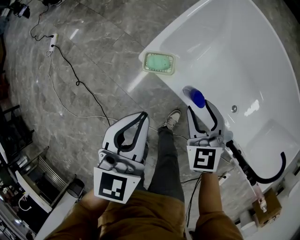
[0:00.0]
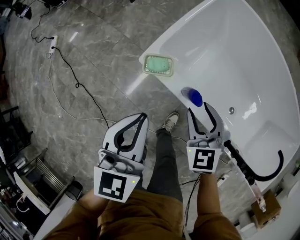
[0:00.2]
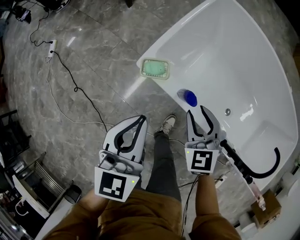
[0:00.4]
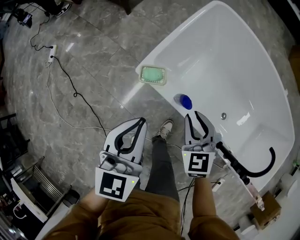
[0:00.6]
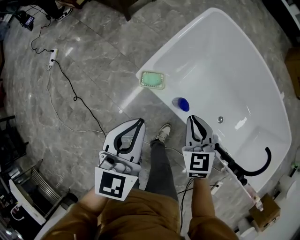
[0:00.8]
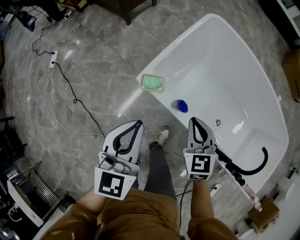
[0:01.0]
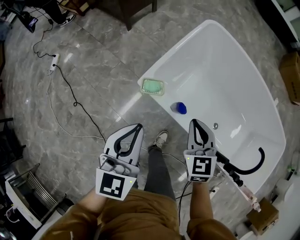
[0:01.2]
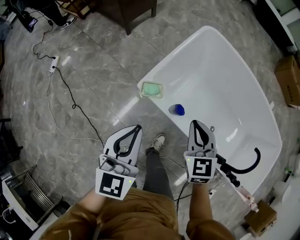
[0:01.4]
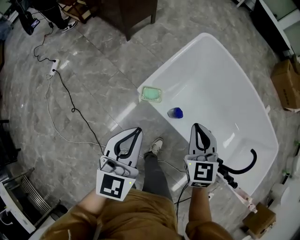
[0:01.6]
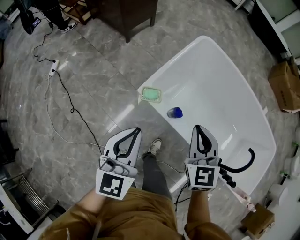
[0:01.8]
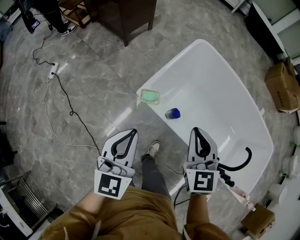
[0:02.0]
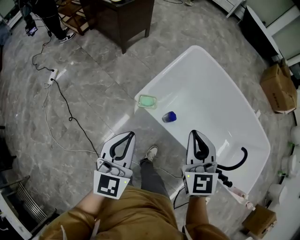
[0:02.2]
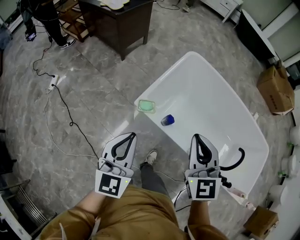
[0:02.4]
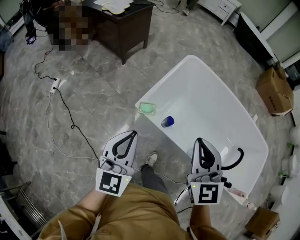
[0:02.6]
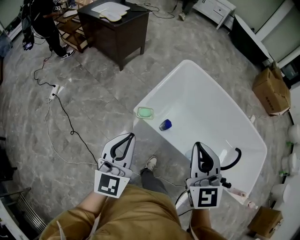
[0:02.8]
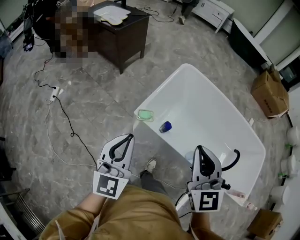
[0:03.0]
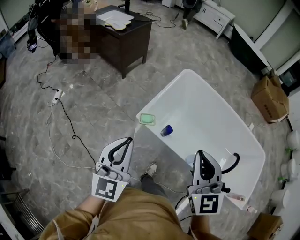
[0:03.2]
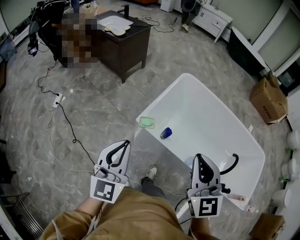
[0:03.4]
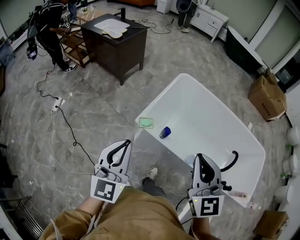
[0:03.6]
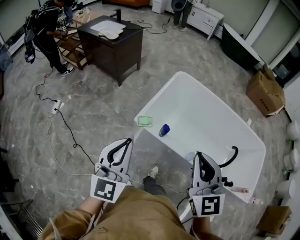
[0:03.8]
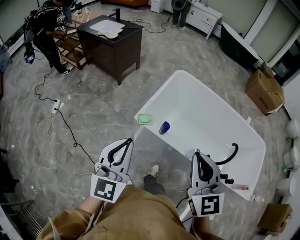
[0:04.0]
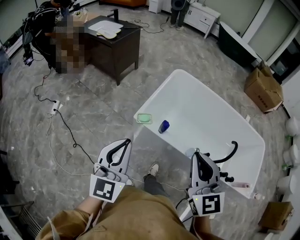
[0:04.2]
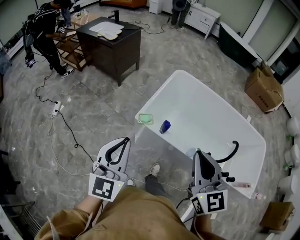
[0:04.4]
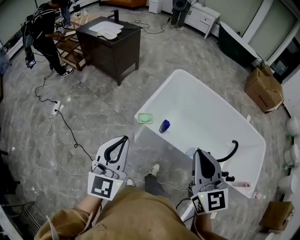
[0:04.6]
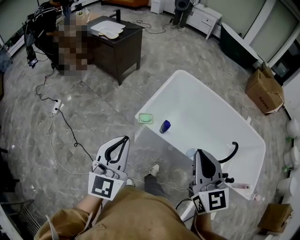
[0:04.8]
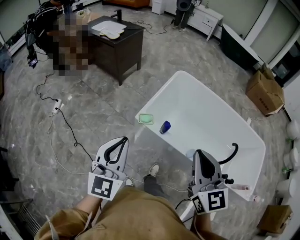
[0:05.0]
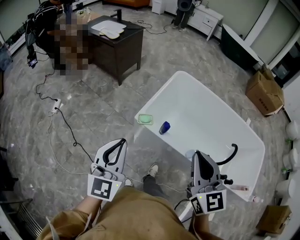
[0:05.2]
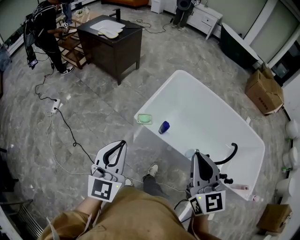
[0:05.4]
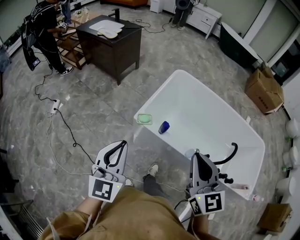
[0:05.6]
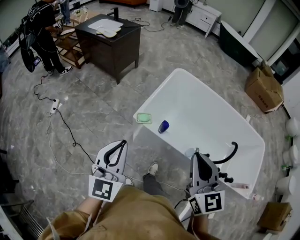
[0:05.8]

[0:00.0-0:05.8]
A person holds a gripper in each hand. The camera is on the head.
0:00.0 to 0:01.4: Both grippers travel together upward, approximately 15 cm. The right gripper closes.
0:01.4 to 0:02.8: The right gripper travels upward and backward by roughly 25 cm, while the left gripper travels upward and backward by about 15 cm.
0:02.8 to 0:04.4: The right gripper shifts approximately 10 cm backward, while the left gripper is displaced backward and upward by about 10 cm.
0:04.4 to 0:05.8: There are only small adjustments of the grippers.

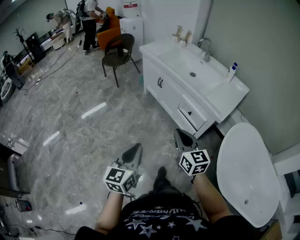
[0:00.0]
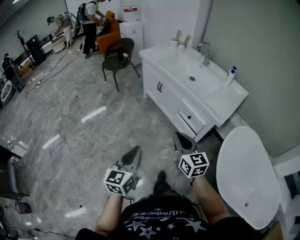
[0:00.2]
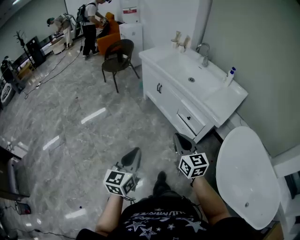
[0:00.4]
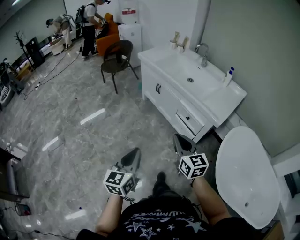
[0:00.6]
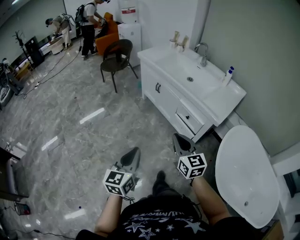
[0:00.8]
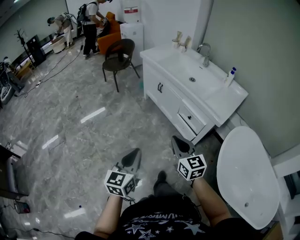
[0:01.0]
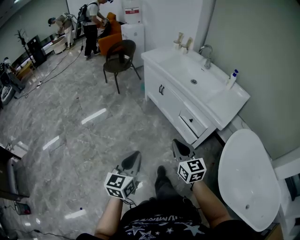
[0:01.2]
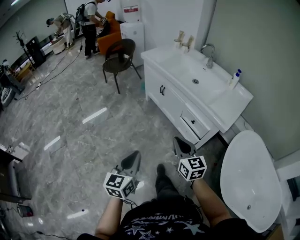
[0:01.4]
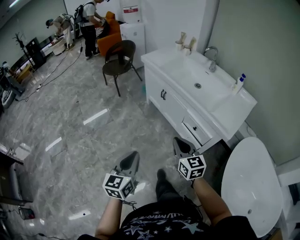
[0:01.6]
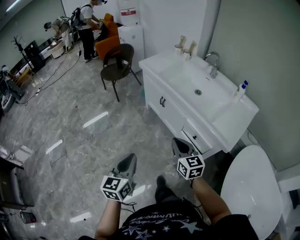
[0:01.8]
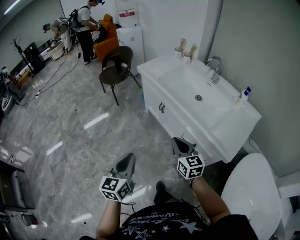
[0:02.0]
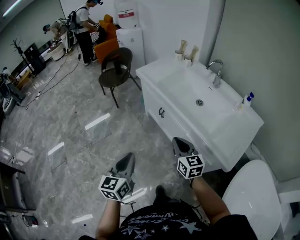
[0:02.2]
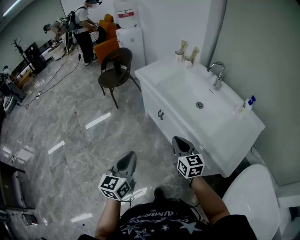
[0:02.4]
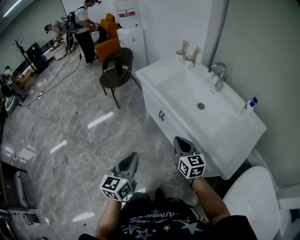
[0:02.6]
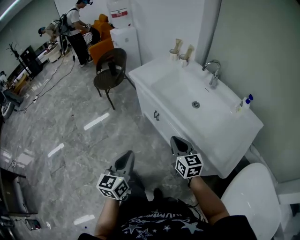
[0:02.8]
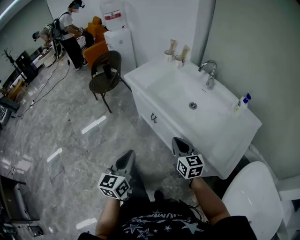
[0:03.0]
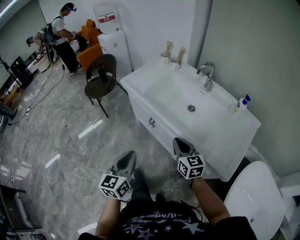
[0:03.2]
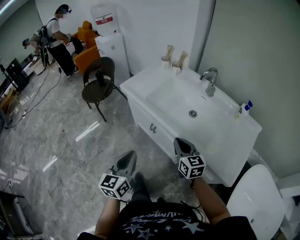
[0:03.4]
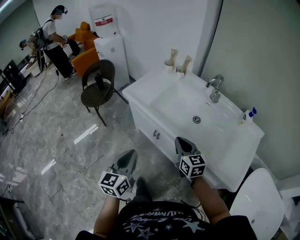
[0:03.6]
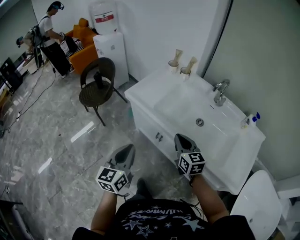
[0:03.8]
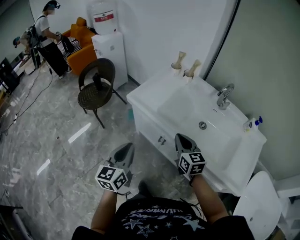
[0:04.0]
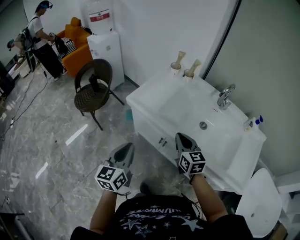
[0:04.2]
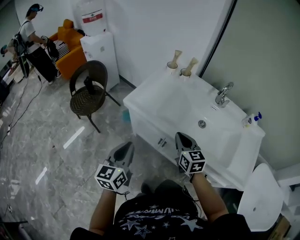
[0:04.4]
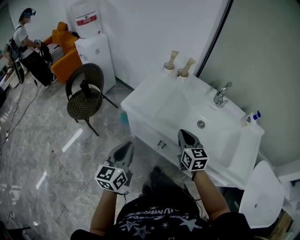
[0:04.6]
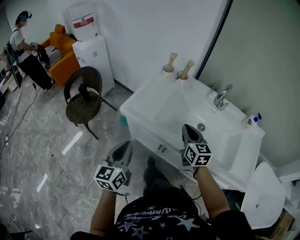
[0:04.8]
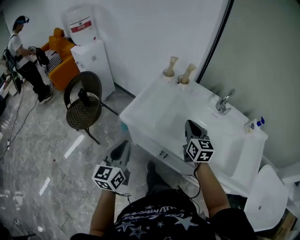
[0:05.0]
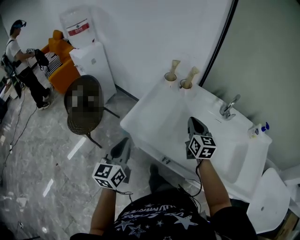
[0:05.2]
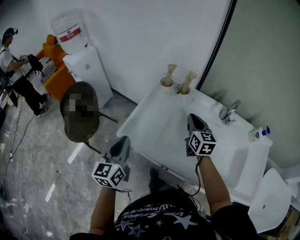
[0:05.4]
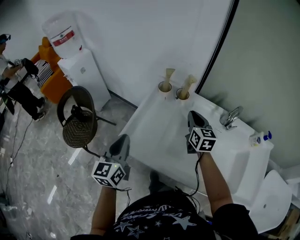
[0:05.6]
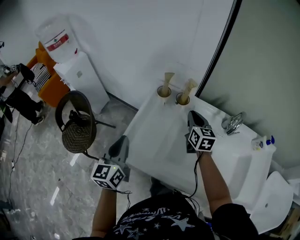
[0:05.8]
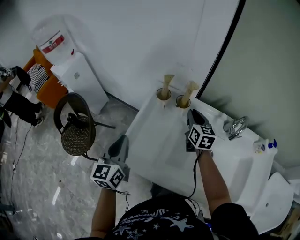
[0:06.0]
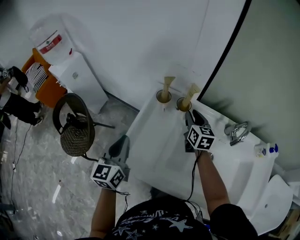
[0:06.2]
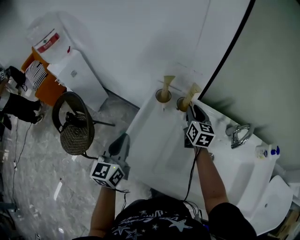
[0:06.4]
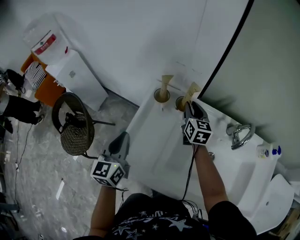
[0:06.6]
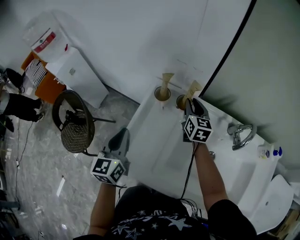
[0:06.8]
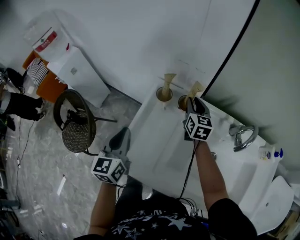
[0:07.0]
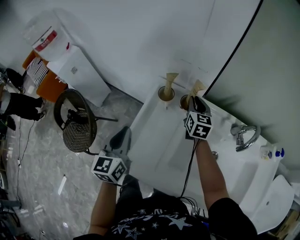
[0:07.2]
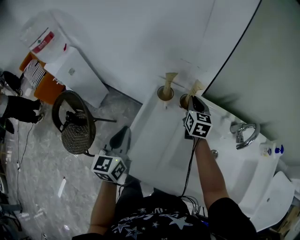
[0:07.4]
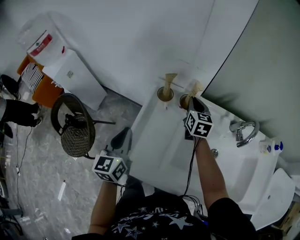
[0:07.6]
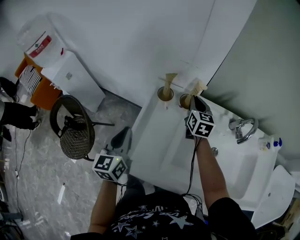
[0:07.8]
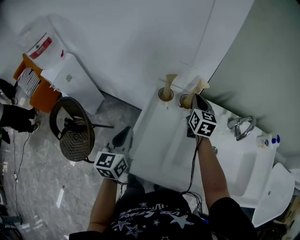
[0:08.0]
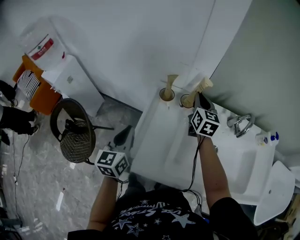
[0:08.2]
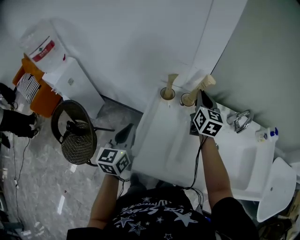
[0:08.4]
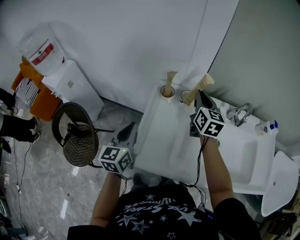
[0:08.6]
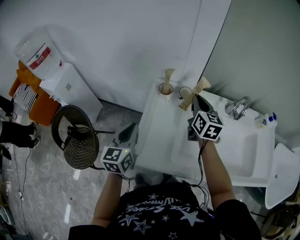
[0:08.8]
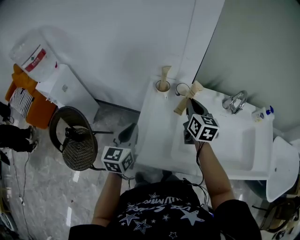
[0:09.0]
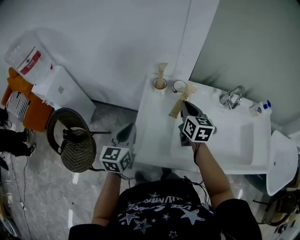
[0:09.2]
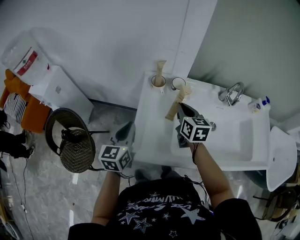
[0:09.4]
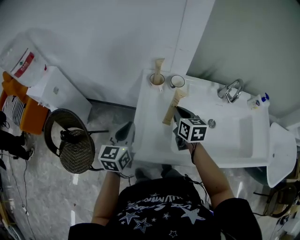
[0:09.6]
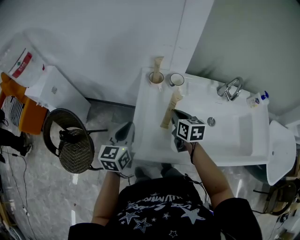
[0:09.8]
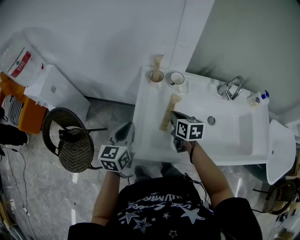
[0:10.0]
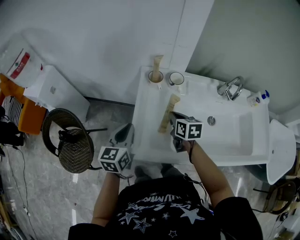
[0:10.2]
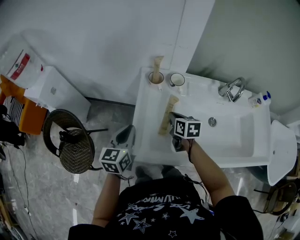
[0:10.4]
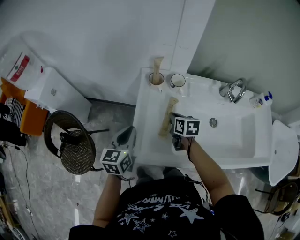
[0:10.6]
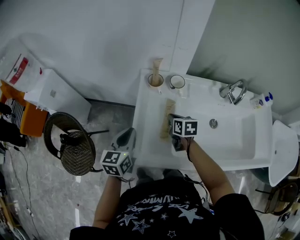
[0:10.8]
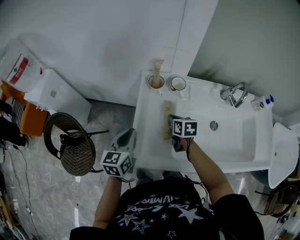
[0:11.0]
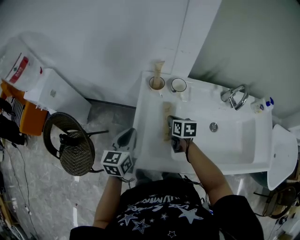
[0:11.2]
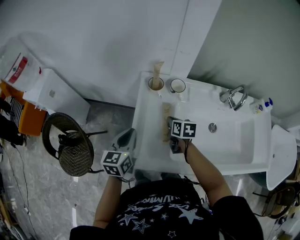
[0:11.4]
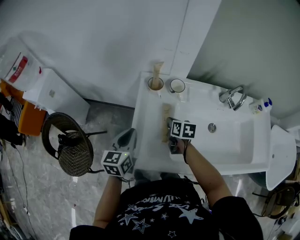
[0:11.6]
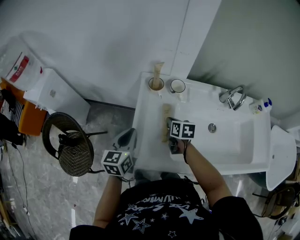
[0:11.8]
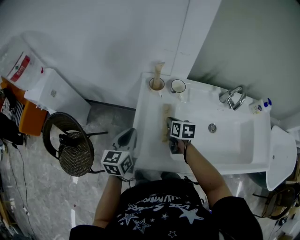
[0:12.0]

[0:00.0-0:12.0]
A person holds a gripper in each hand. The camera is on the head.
0:00.0 to 0:01.6: The two grippers go some 10 cm forward.
0:01.6 to 0:03.0: Both grippers move forward, about 30 cm.
0:03.0 to 0:04.4: Both grippers move forward and to the left, approximately 30 cm.
0:04.4 to 0:06.0: The grippers both shift forward by some 40 cm. The right gripper swivels some 20 degrees.
0:06.0 to 0:07.6: The two grippers go about 10 cm forward.
0:07.6 to 0:09.0: The right gripper is displaced backward and upward by roughly 15 cm.
0:09.0 to 0:10.4: The right gripper is displaced downward by some 15 cm, and changes its angle by approximately 30 degrees.
0:10.4 to 0:12.0: The grippers stay close to where they were, moving slightly.

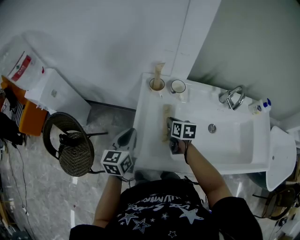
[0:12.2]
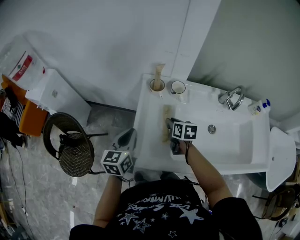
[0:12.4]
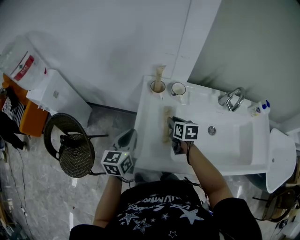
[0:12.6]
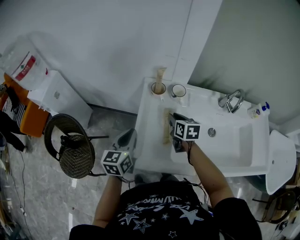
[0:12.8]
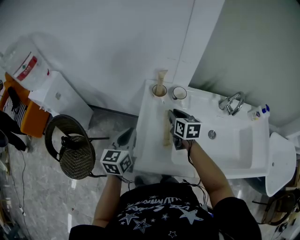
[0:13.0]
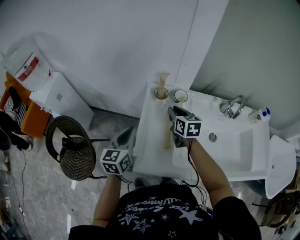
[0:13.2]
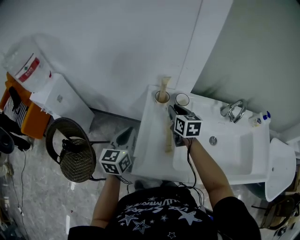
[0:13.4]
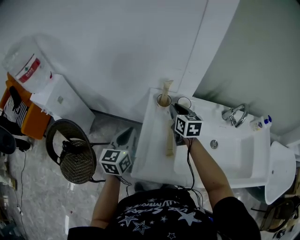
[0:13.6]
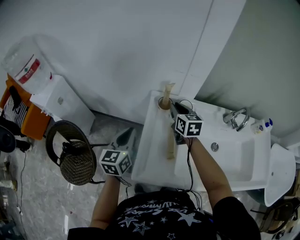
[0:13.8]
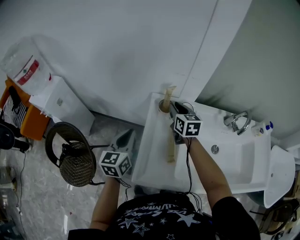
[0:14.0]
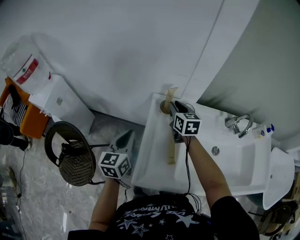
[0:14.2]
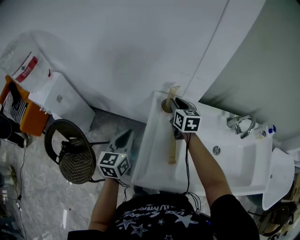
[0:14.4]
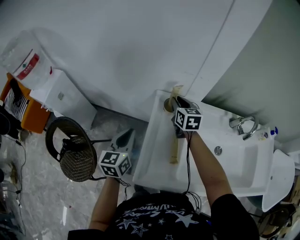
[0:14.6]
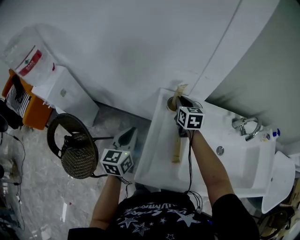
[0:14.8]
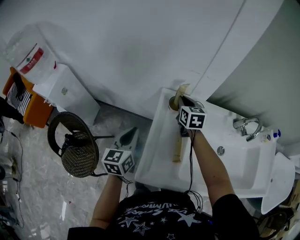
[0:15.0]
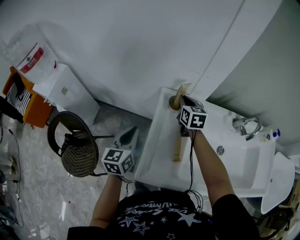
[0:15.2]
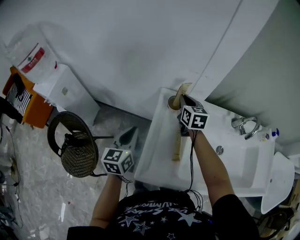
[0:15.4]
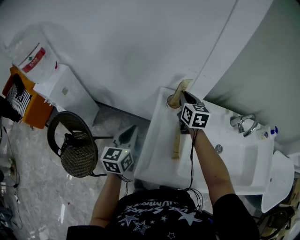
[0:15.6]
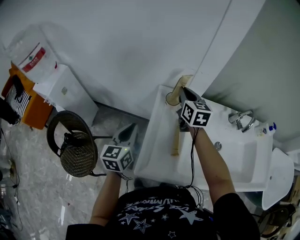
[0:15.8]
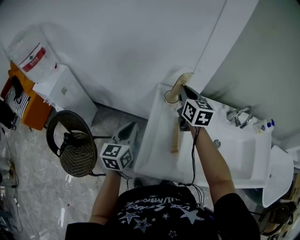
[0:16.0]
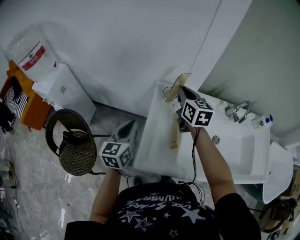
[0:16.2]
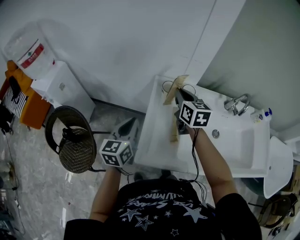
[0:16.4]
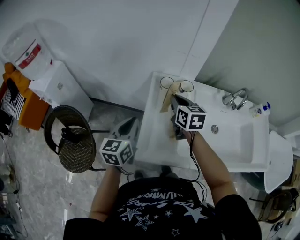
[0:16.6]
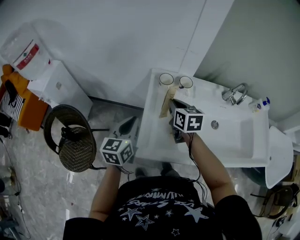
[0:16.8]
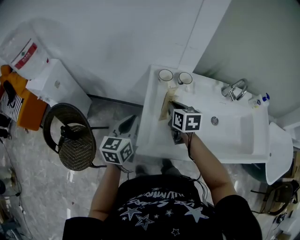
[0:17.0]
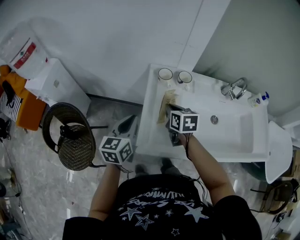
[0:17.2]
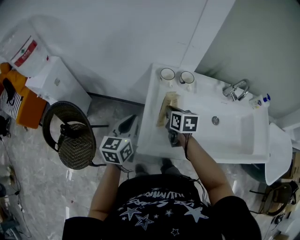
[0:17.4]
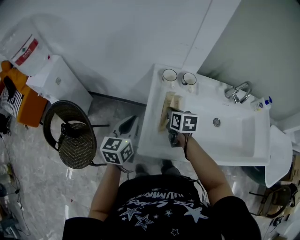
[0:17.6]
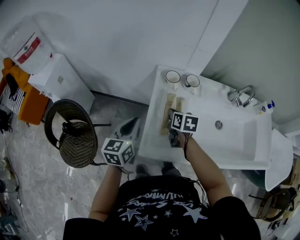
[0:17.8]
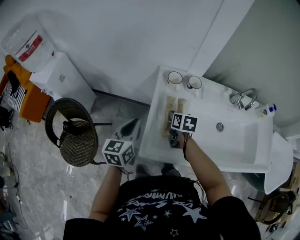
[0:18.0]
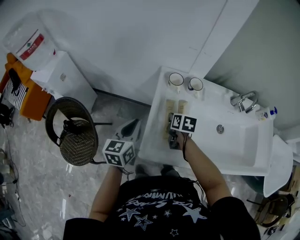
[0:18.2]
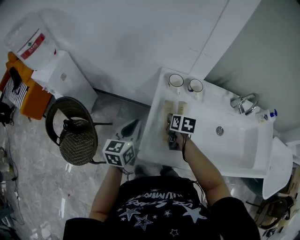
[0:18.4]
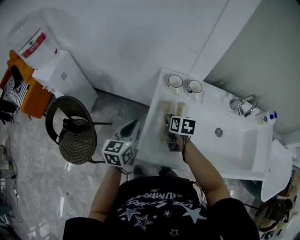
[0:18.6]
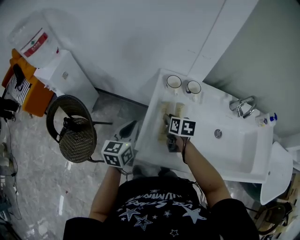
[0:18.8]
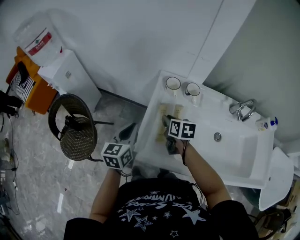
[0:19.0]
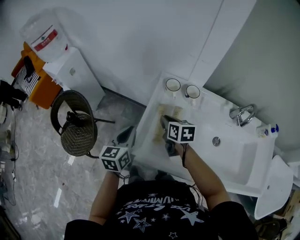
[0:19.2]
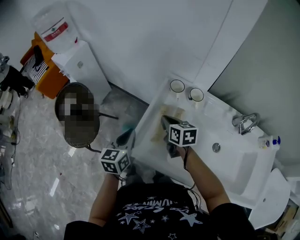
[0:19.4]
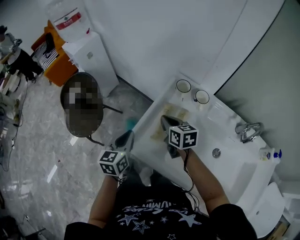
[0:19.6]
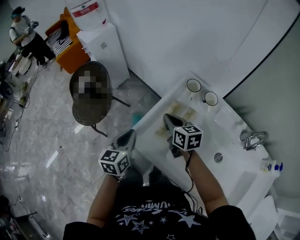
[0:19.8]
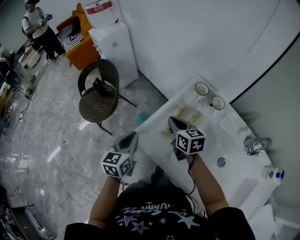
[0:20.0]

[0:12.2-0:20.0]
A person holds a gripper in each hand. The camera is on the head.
0:12.2 to 0:13.8: The left gripper moves forward, roughly 5 cm, while the right gripper is displaced upward and forward by about 20 cm, and turns by some 30 degrees.
0:13.8 to 0:15.4: The right gripper goes approximately 5 cm forward.
0:15.4 to 0:16.8: The left gripper travels backward by some 10 cm; the right gripper is displaced backward by about 15 cm.
0:16.8 to 0:18.4: The right gripper goes some 15 cm downward, and swivels some 20 degrees.
0:18.4 to 0:20.0: The left gripper changes place by approximately 15 cm, and rotates roughly 30 degrees. The right gripper shifts some 10 cm upward, and rotates about 50 degrees.
